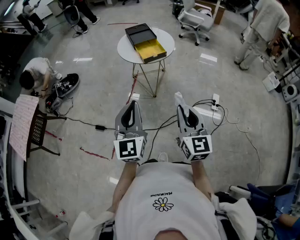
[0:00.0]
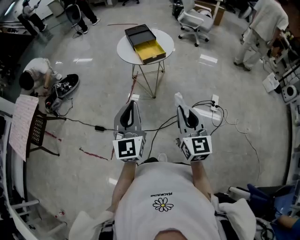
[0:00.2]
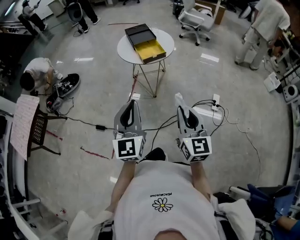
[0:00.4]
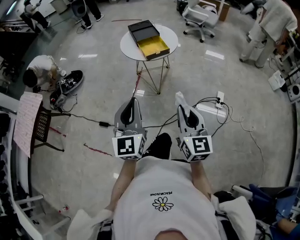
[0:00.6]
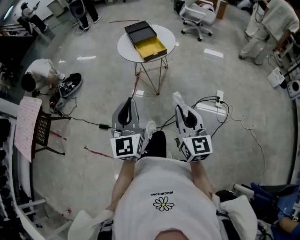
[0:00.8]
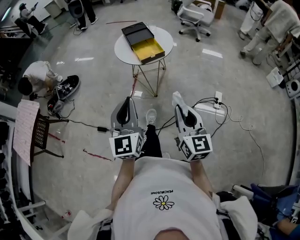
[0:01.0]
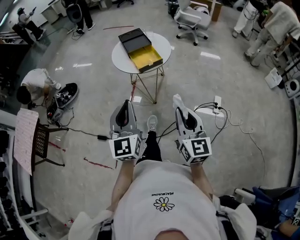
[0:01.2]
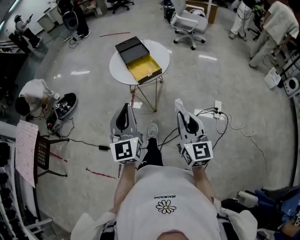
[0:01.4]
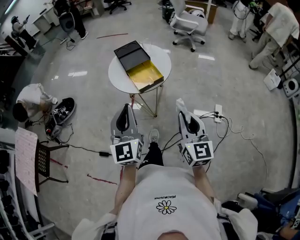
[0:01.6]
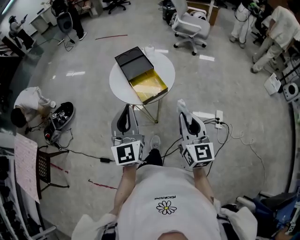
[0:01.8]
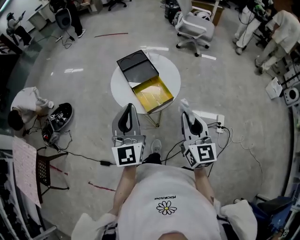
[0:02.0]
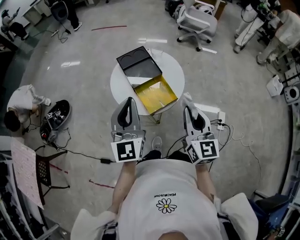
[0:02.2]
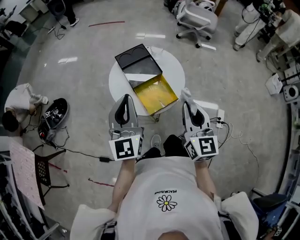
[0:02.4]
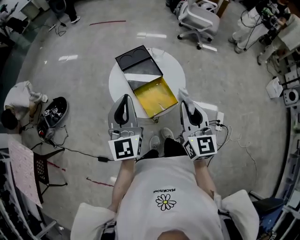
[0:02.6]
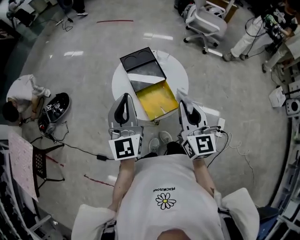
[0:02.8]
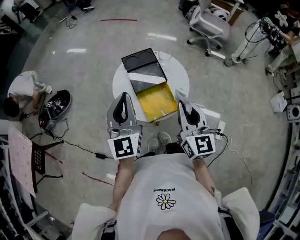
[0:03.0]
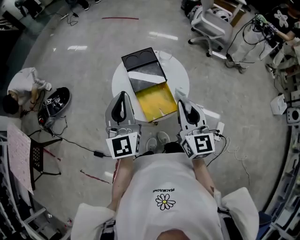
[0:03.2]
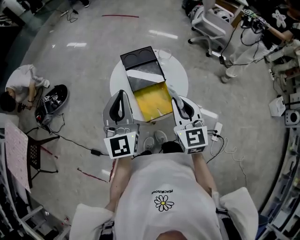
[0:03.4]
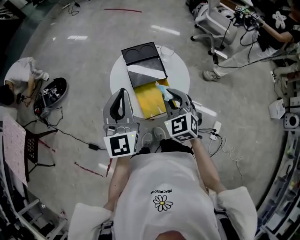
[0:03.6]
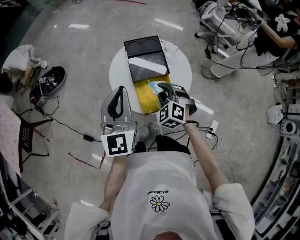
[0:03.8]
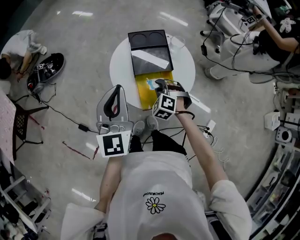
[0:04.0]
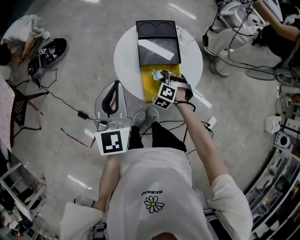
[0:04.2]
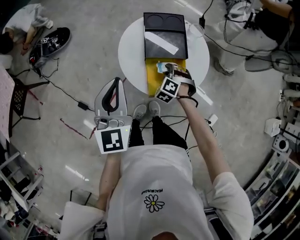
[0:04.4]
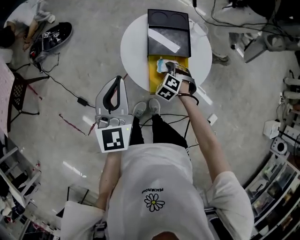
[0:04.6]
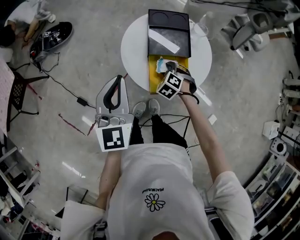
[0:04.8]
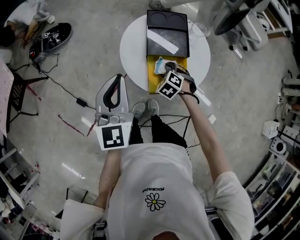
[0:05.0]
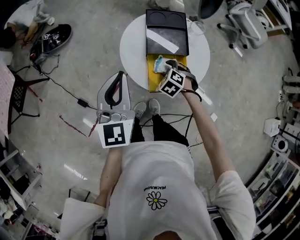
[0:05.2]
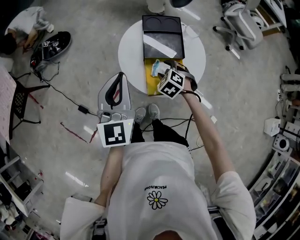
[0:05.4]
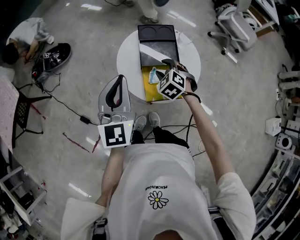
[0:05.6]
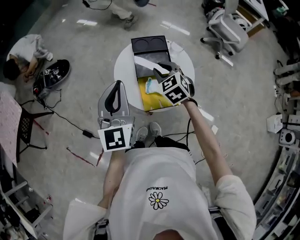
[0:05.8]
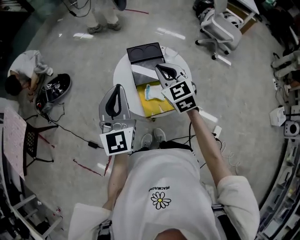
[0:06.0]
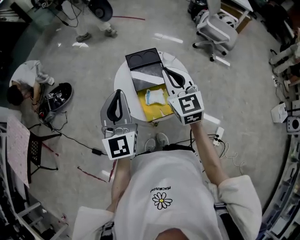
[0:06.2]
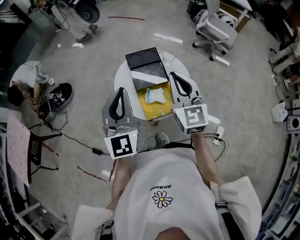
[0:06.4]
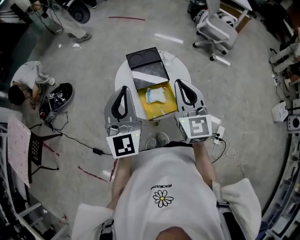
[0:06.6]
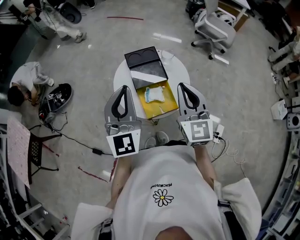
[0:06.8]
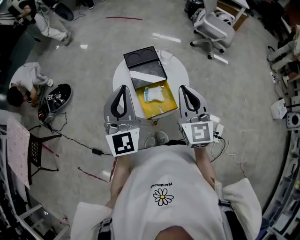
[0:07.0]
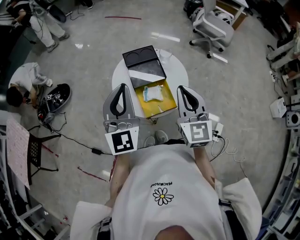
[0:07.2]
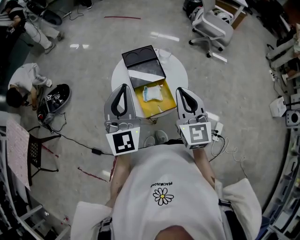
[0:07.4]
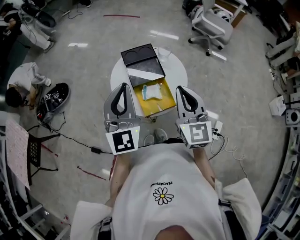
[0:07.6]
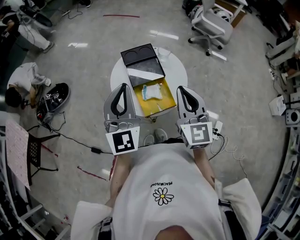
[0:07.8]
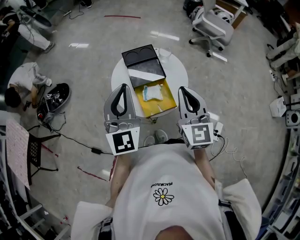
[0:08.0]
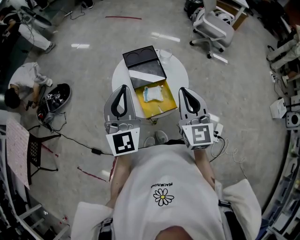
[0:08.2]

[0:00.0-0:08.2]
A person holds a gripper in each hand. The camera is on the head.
0:00.0 to 0:01.6: Both grippers move forward, some 20 cm.
0:01.6 to 0:03.2: The two grippers go approximately 30 cm forward.
0:03.2 to 0:05.0: The left gripper travels downward and to the left by approximately 10 cm, while the right gripper is displaced downward by approximately 30 cm, angles its fingers downward, by some 60 degrees, and opens up.
0:05.0 to 0:06.6: The left gripper is displaced upward and to the right by roughly 15 cm, and swivels roughly 20 degrees. The right gripper travels upward by some 35 cm, points its fingers about 60 degrees further upward, and closes.
0:06.6 to 0:08.2: There are only small adjustments of the grippers.

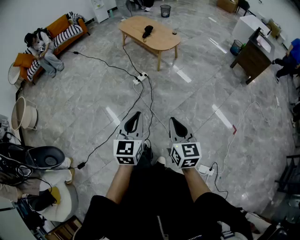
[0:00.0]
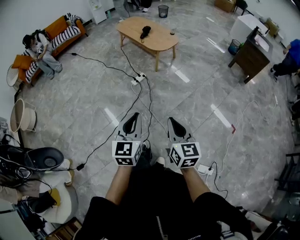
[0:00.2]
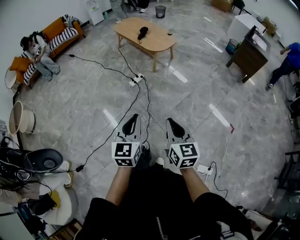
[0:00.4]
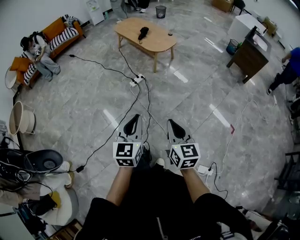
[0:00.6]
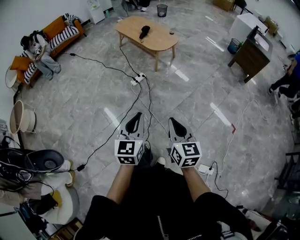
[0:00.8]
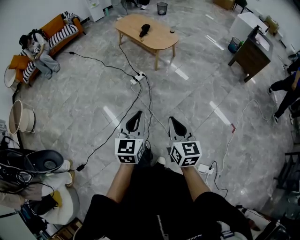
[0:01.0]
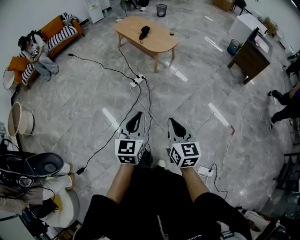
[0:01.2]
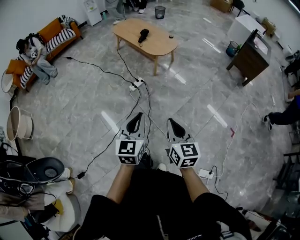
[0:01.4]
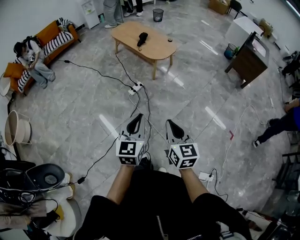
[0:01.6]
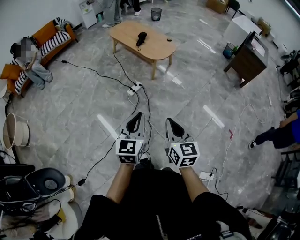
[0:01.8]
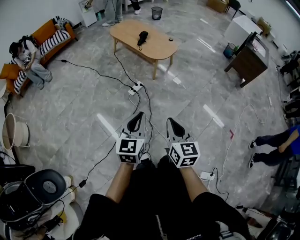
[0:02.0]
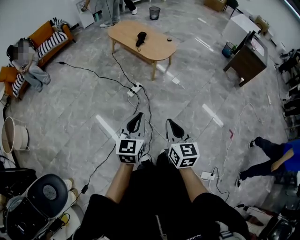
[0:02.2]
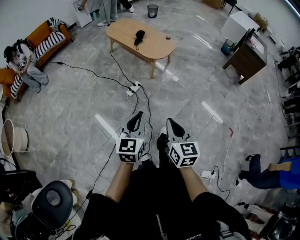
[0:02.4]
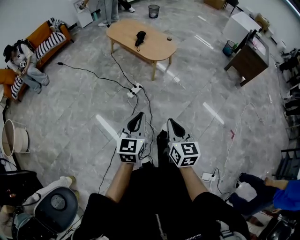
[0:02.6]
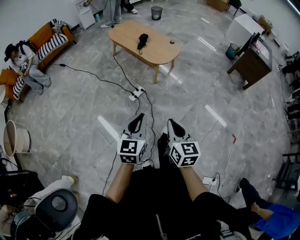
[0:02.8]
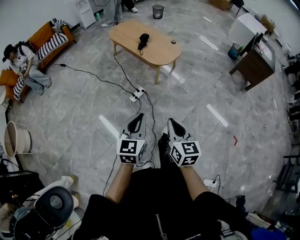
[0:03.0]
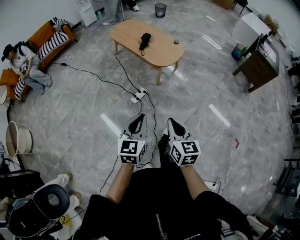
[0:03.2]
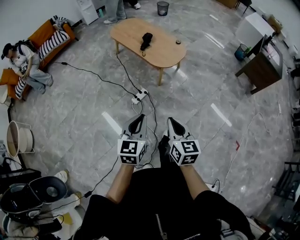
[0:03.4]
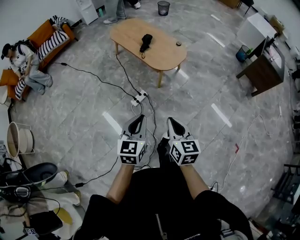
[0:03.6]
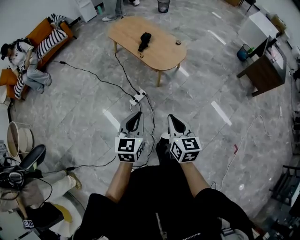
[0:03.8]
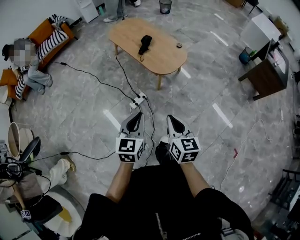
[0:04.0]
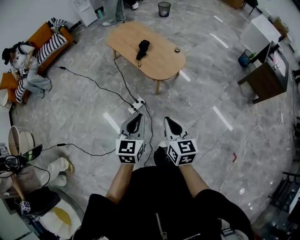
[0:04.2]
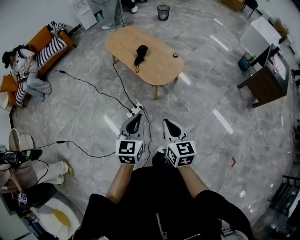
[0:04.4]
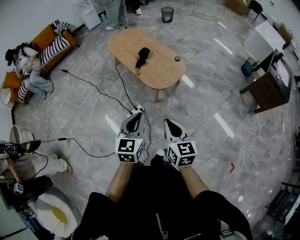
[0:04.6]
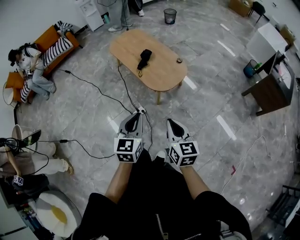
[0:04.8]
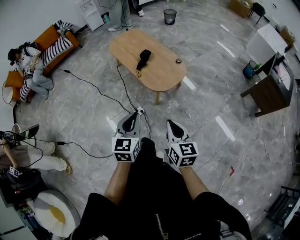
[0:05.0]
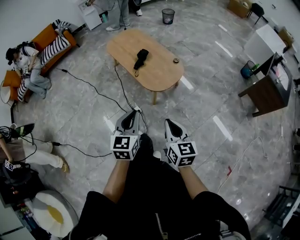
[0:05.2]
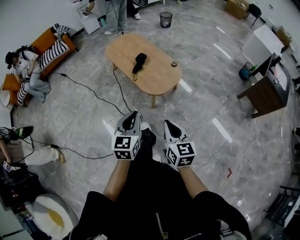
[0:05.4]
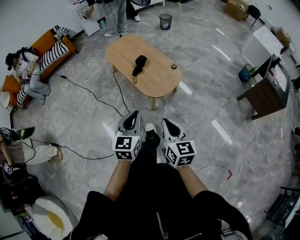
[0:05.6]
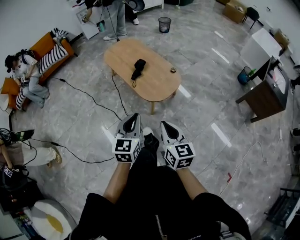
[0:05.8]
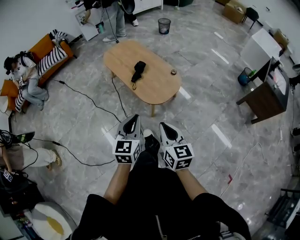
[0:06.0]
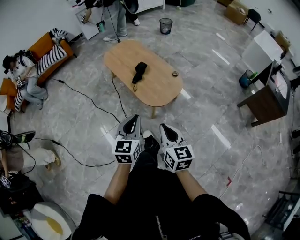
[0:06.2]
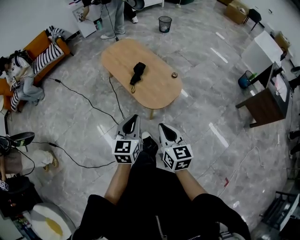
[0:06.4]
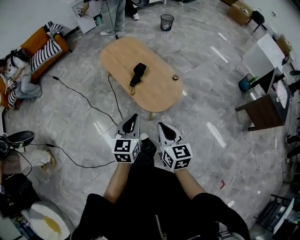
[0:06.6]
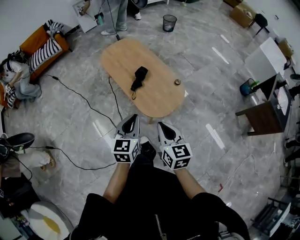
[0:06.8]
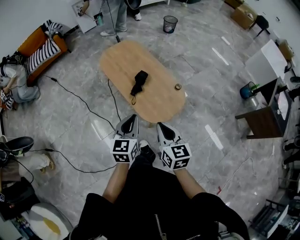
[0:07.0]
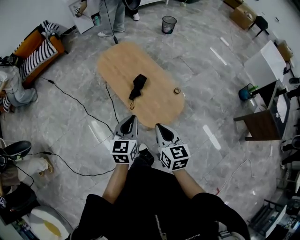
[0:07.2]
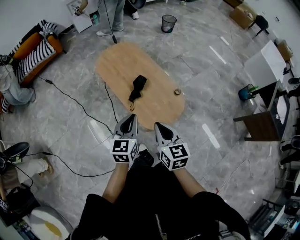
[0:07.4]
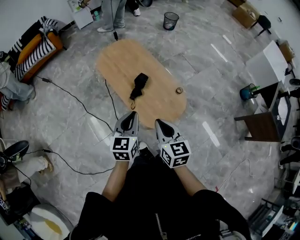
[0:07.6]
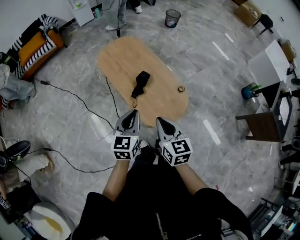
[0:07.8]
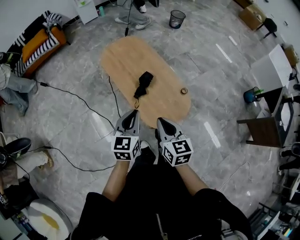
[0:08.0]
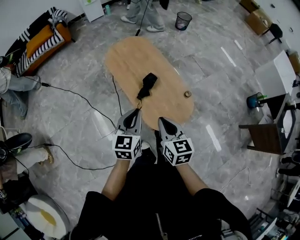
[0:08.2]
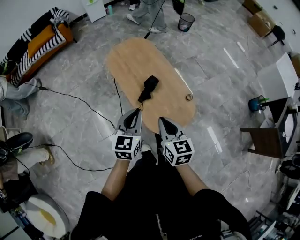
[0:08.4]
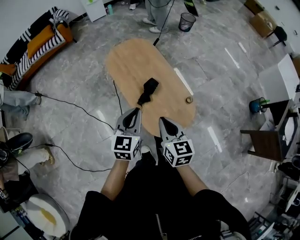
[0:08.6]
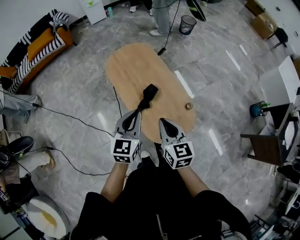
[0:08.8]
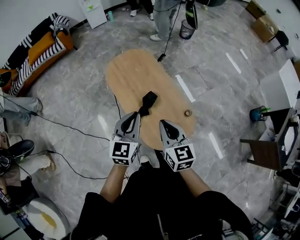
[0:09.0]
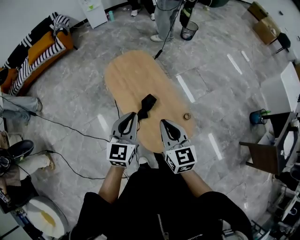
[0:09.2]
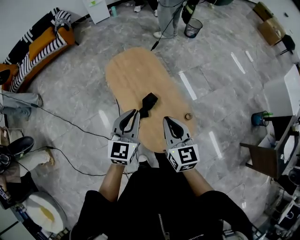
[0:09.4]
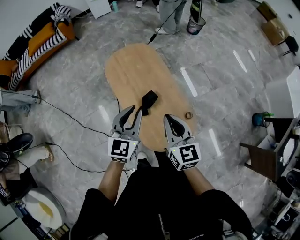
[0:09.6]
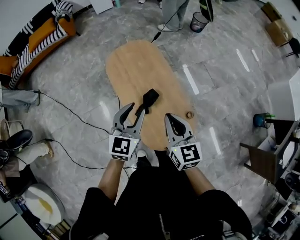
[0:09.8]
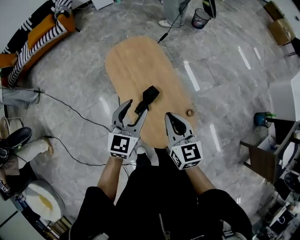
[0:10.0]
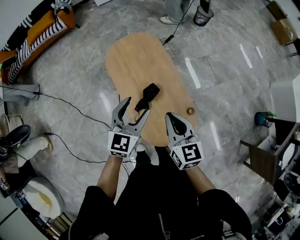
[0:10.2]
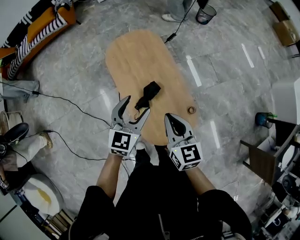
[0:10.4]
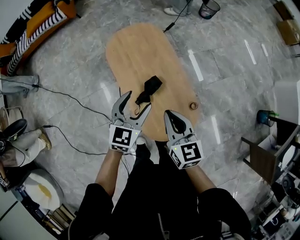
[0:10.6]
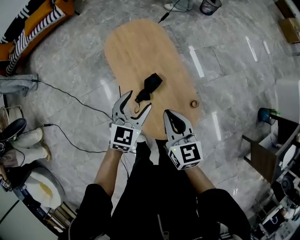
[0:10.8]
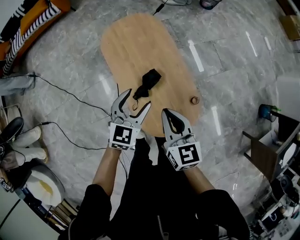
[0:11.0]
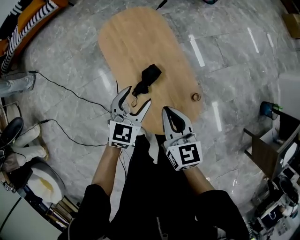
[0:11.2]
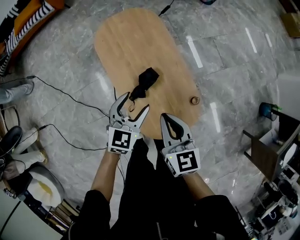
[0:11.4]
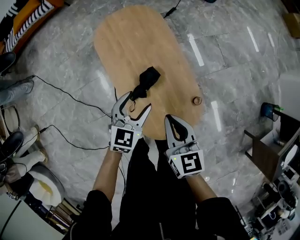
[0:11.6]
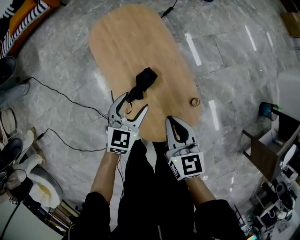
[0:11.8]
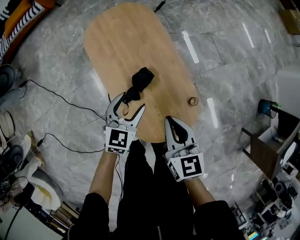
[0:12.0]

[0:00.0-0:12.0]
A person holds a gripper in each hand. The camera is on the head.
0:00.0 to 0:01.6: The right gripper shifts roughly 10 cm forward and to the left. The left gripper shifts some 10 cm forward.
0:01.6 to 0:03.0: Both grippers move forward, some 15 cm.
0:03.0 to 0:04.4: Both grippers move forward, about 25 cm.
0:04.4 to 0:06.0: Both grippers travel together forward, approximately 10 cm.
0:06.0 to 0:07.6: Both grippers move forward, approximately 30 cm.
0:07.6 to 0:09.0: The grippers both shift forward by approximately 15 cm.
0:09.0 to 0:10.4: The right gripper goes some 5 cm forward. Meanwhile the left gripper moves forward and downward, approximately 10 cm, and opens up.
0:10.4 to 0:12.0: The right gripper travels downward by some 10 cm, while the left gripper is displaced downward by approximately 20 cm.

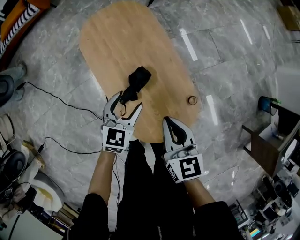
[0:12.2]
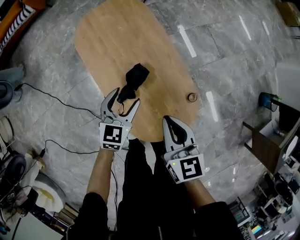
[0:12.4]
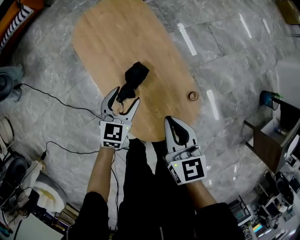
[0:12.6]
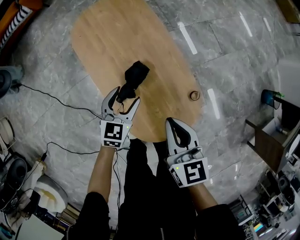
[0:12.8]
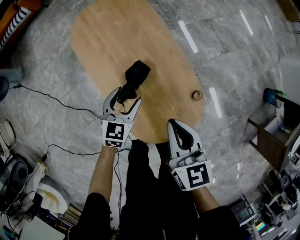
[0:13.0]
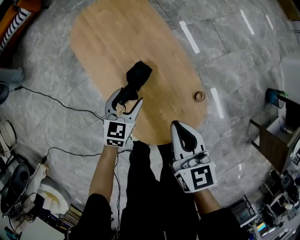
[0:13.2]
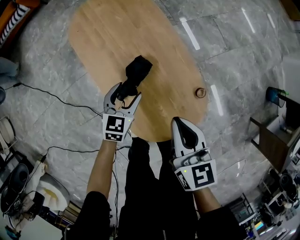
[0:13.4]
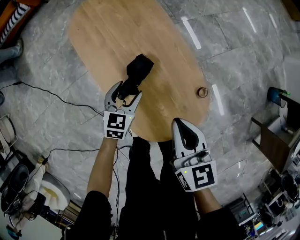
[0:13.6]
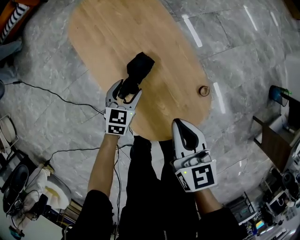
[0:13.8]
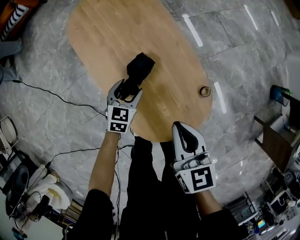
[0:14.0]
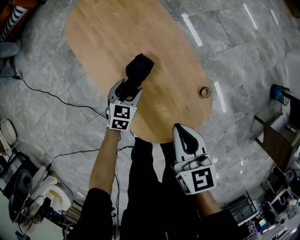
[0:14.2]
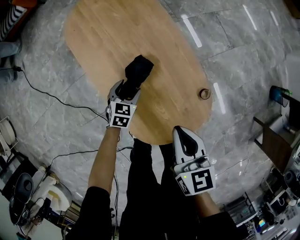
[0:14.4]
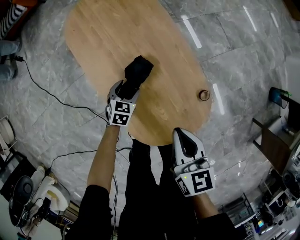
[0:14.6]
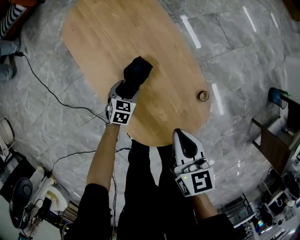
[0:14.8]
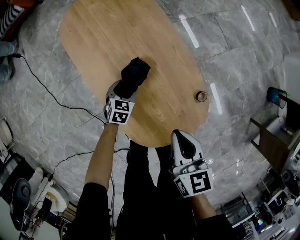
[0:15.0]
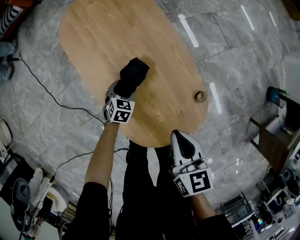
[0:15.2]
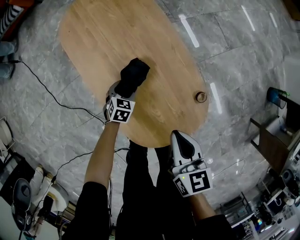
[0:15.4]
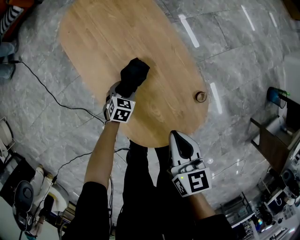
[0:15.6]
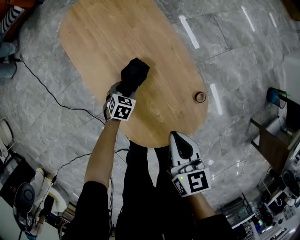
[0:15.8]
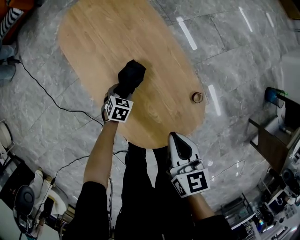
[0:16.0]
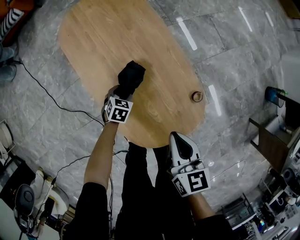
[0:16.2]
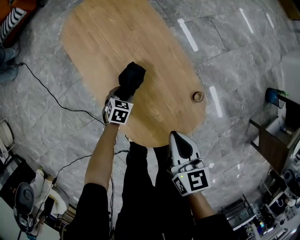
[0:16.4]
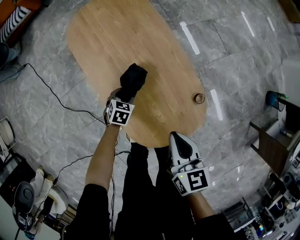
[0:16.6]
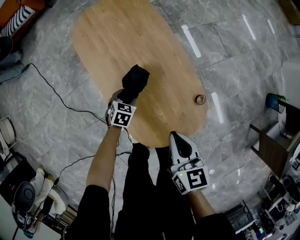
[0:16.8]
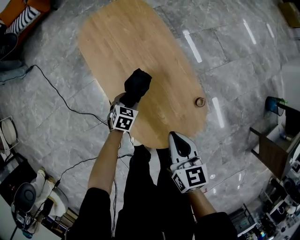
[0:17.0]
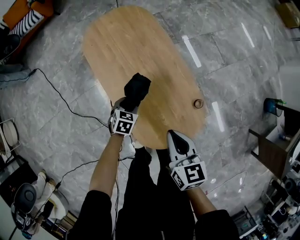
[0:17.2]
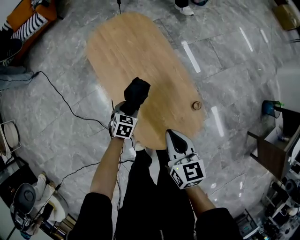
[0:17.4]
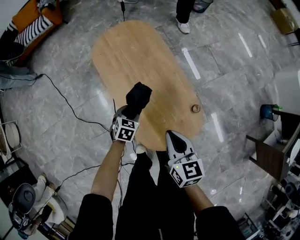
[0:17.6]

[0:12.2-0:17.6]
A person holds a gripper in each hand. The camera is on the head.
0:12.2 to 0:13.6: The right gripper ends up roughly 5 cm from where it was; the left gripper is displaced downward by some 15 cm.
0:13.6 to 0:15.0: The right gripper heads downward, covering about 5 cm, while the left gripper heads downward, covering approximately 15 cm.
0:15.0 to 0:16.2: The grippers make only small movements.
0:16.2 to 0:17.6: The right gripper goes some 10 cm upward and to the left. Meanwhile the left gripper goes roughly 15 cm upward.
